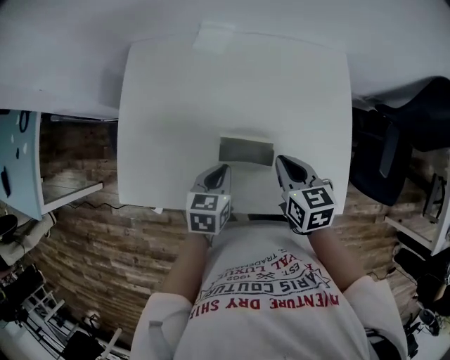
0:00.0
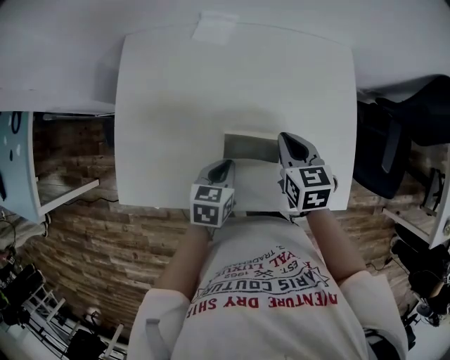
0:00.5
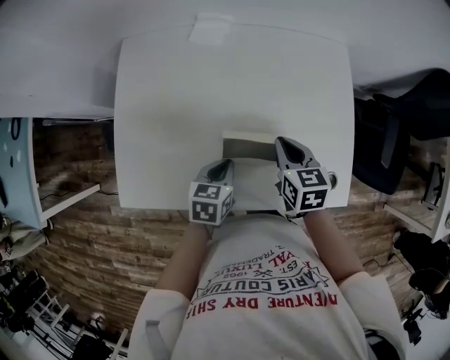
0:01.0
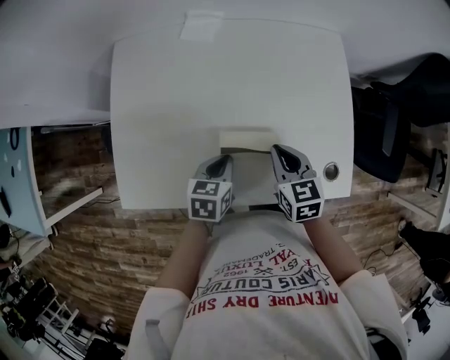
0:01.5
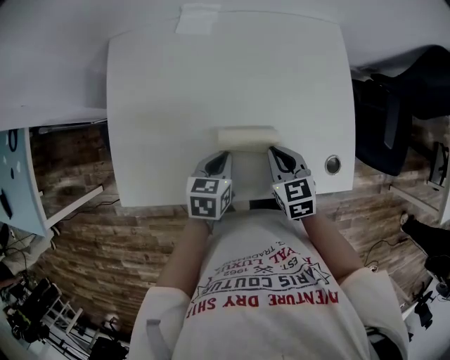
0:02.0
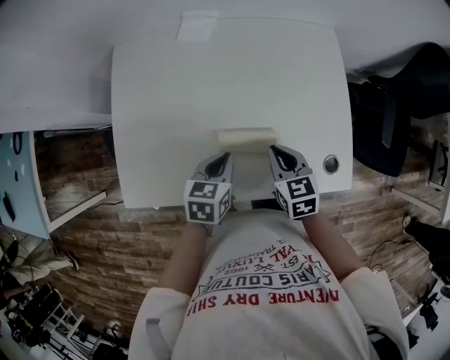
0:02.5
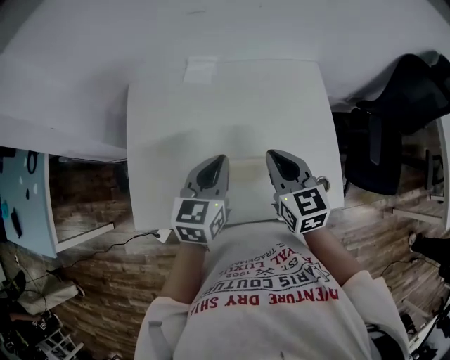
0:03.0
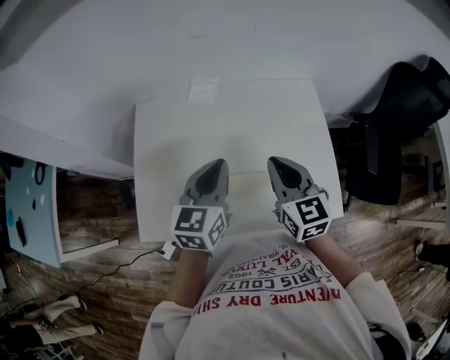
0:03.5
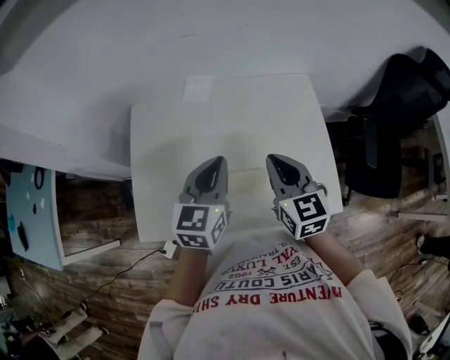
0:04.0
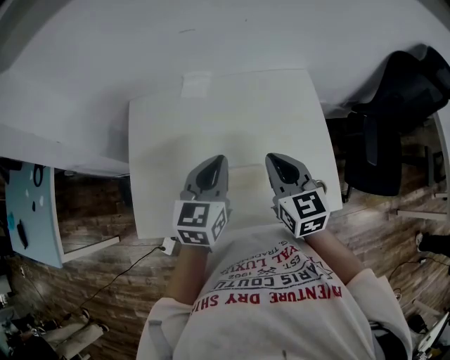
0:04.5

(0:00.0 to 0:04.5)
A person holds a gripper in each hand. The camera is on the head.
0:00.0 - 0:02.0: The right gripper goes some 5 cm downward.
0:02.0 - 0:04.5: Both grippers travel together upward, roughly 20 cm. The left gripper swivels about 30 degrees, while the right gripper changes its angle by approximately 20 degrees.

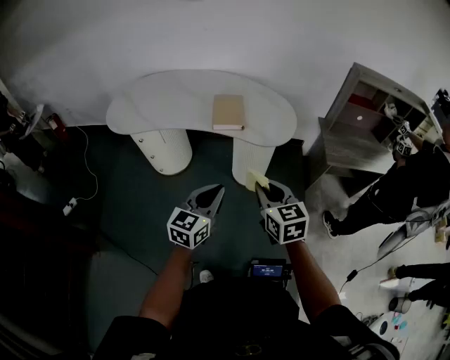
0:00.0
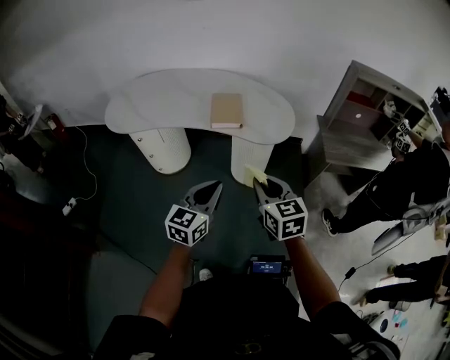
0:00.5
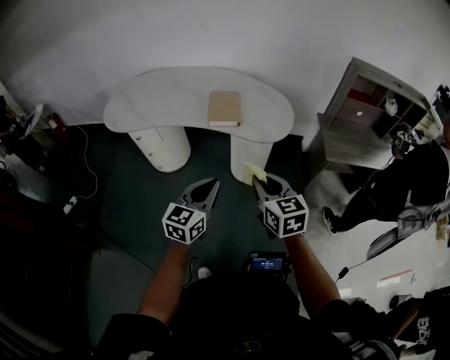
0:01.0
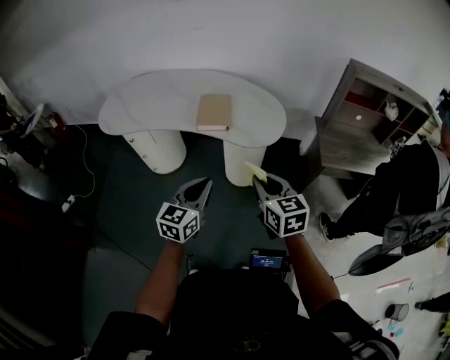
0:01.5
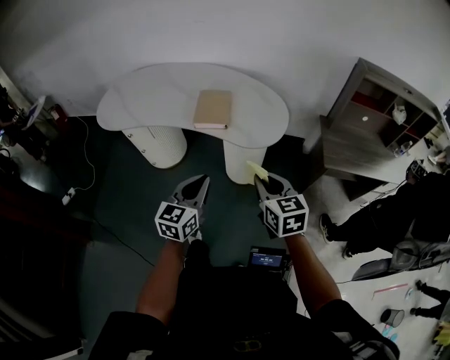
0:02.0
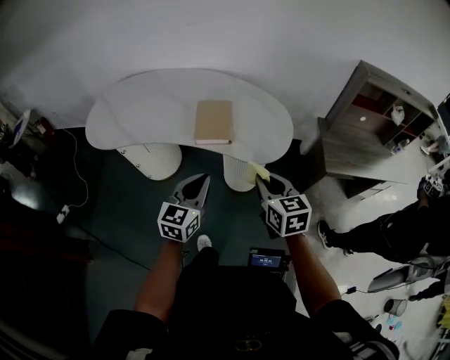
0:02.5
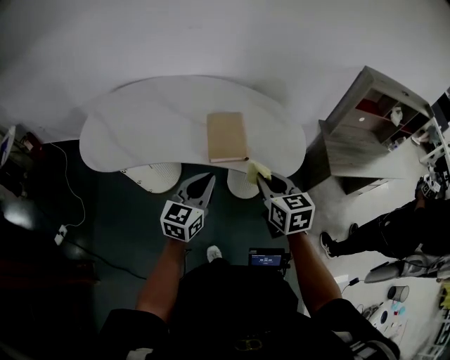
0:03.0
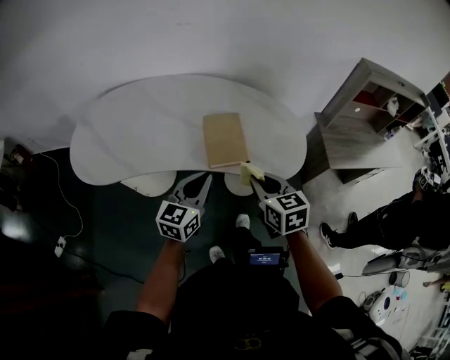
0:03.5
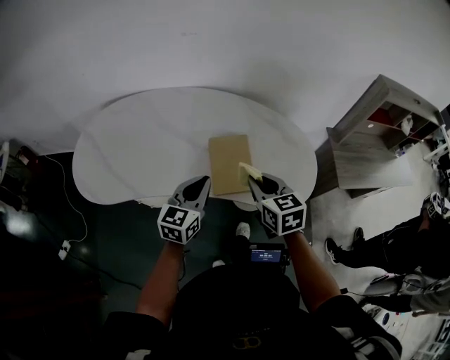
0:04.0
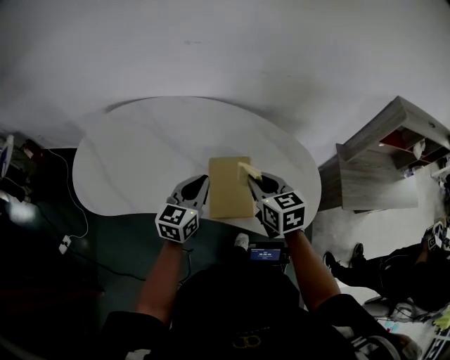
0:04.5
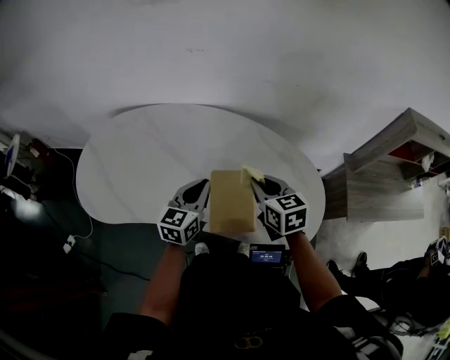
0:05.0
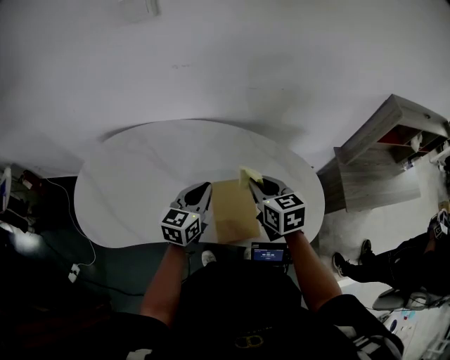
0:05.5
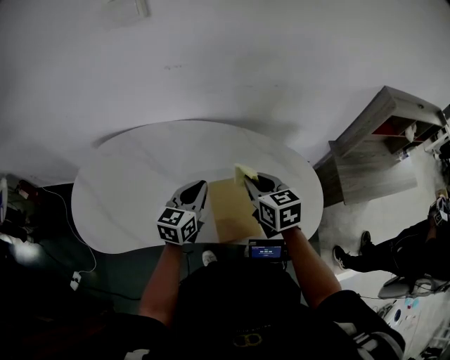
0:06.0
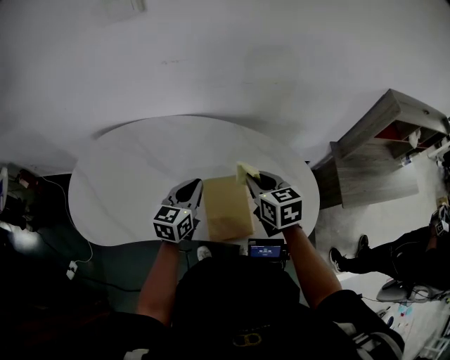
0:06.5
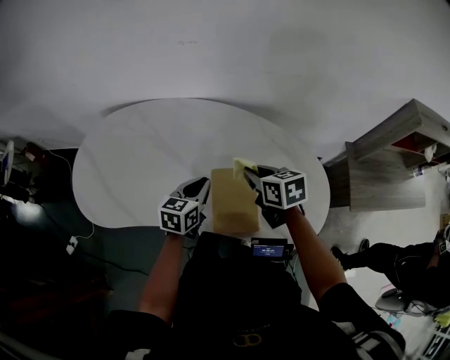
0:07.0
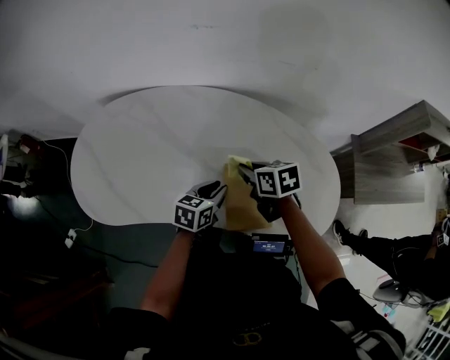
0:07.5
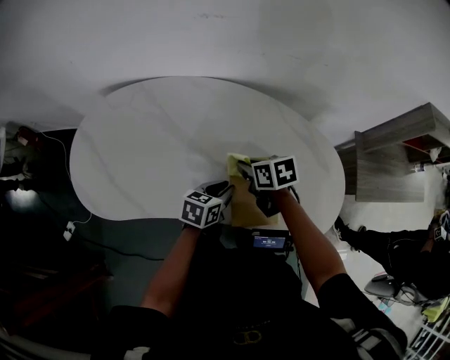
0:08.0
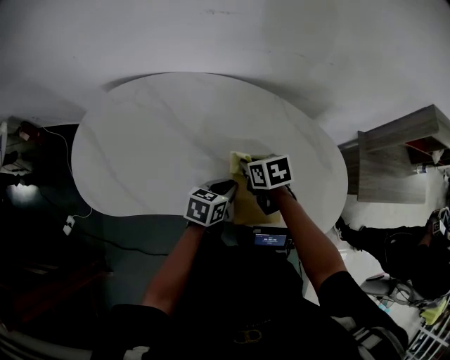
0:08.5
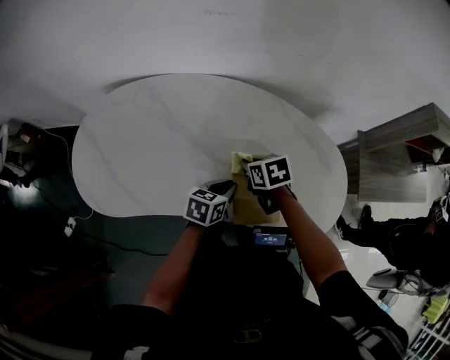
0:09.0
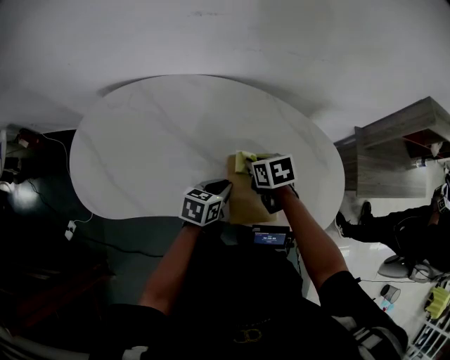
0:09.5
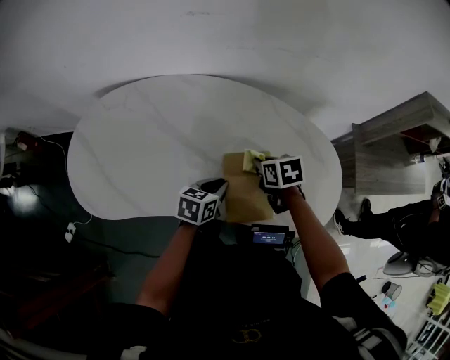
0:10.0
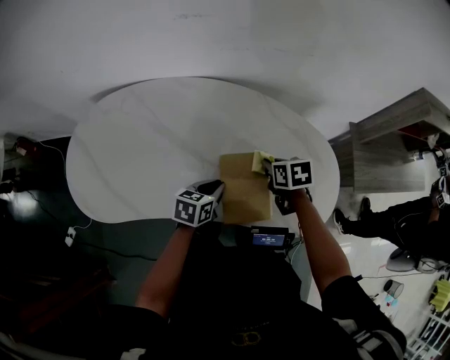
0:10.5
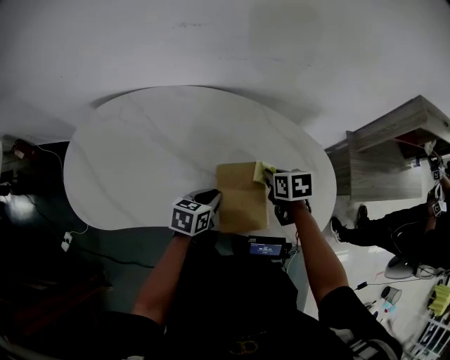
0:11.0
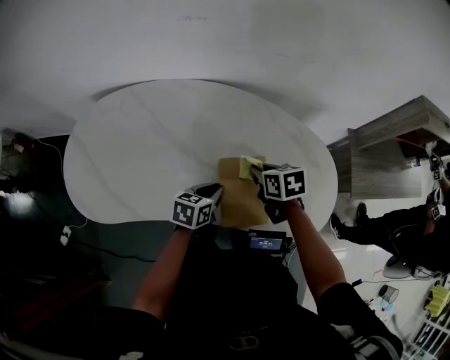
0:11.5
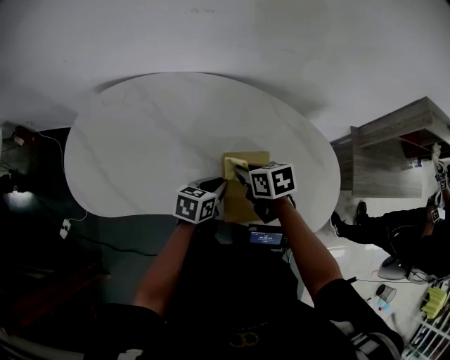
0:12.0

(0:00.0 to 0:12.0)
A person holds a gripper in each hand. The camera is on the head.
0:00.0 - 0:02.0: The right gripper travels to the right and forward by some 15 cm. The left gripper travels forward and to the right by some 10 cm.
0:02.0 - 0:04.0: The grippers both shift forward and to the left by about 35 cm.
0:04.0 - 0:06.0: The grippers both shift forward by about 15 cm.
0:06.0 - 0:08.0: The right gripper is displaced downward and to the left by about 15 cm, and rotates some 30 degrees. The left gripper heads downward, covering roughly 15 cm, and swivels roughly 30 degrees.
0:08.0 - 0:10.0: The right gripper is displaced to the right by some 10 cm.
0:10.0 - 0:12.0: The right gripper moves to the left, some 5 cm.

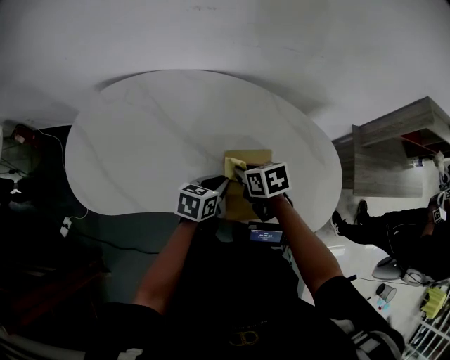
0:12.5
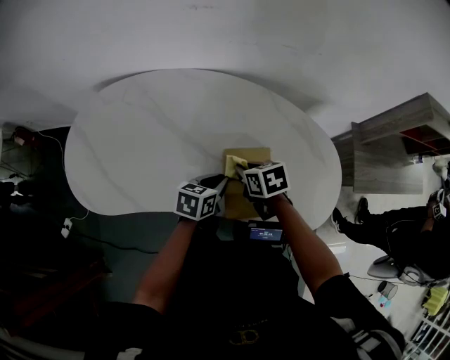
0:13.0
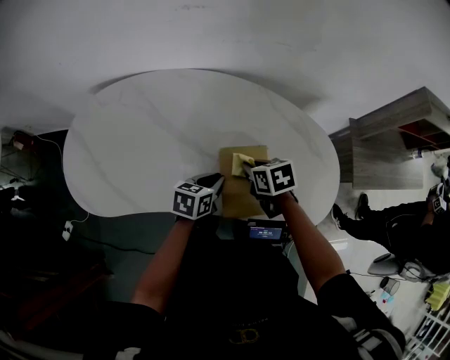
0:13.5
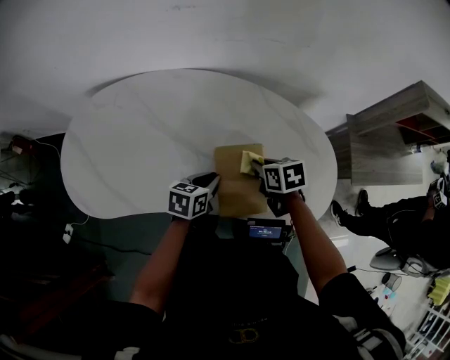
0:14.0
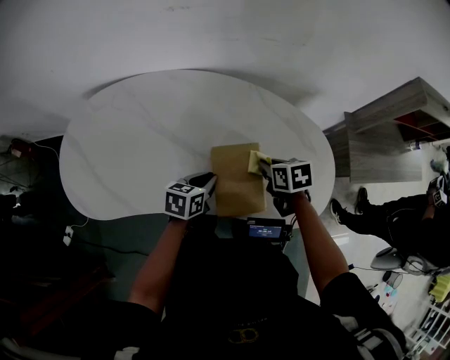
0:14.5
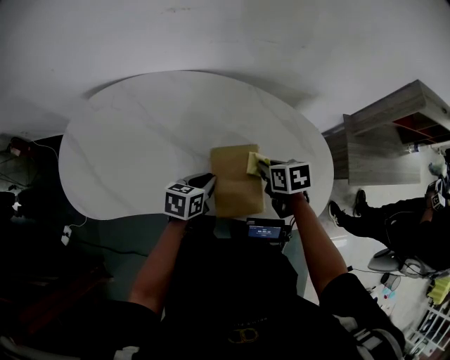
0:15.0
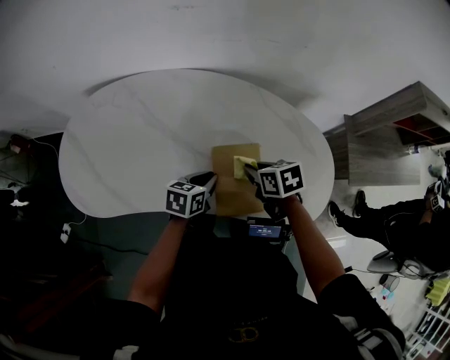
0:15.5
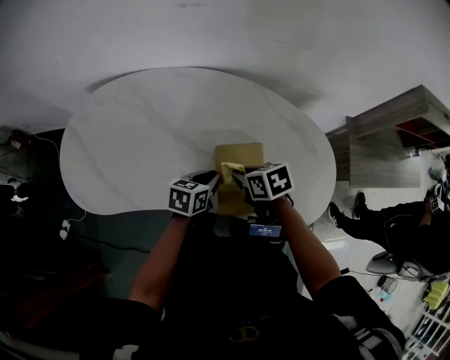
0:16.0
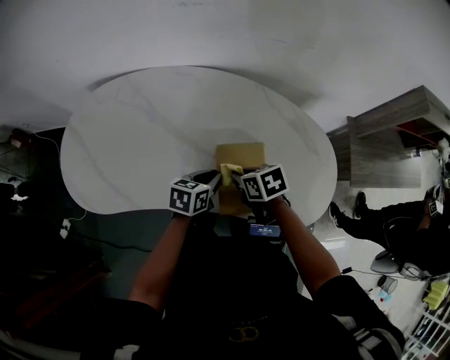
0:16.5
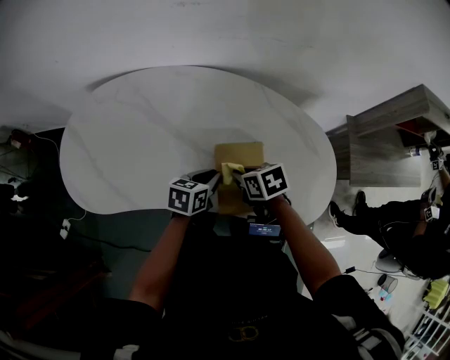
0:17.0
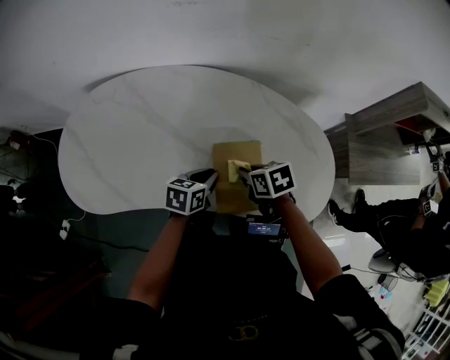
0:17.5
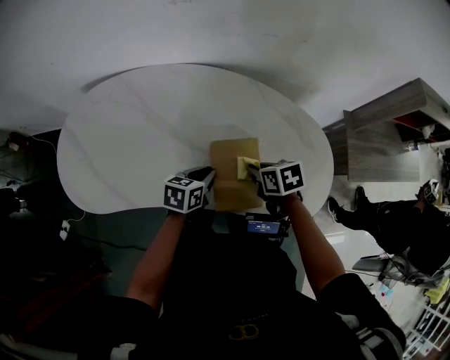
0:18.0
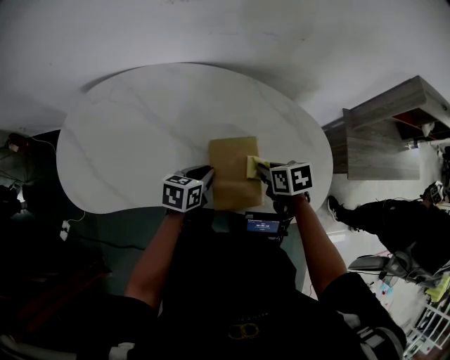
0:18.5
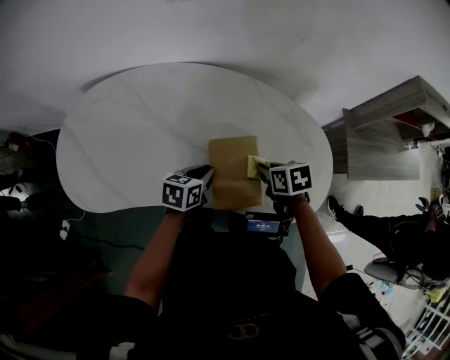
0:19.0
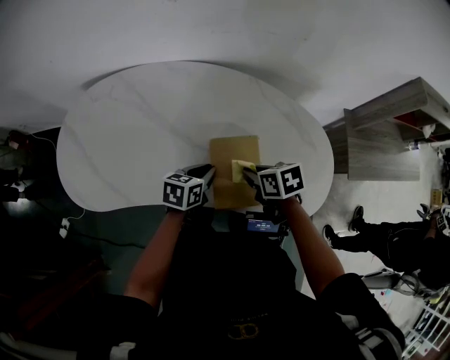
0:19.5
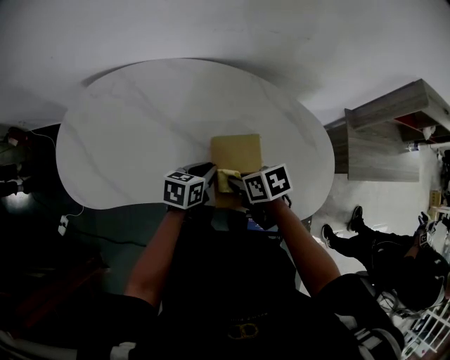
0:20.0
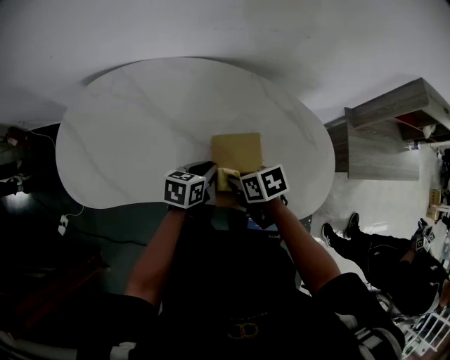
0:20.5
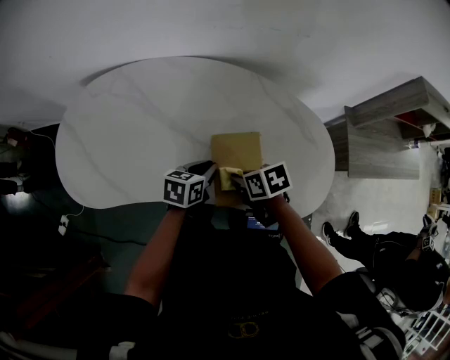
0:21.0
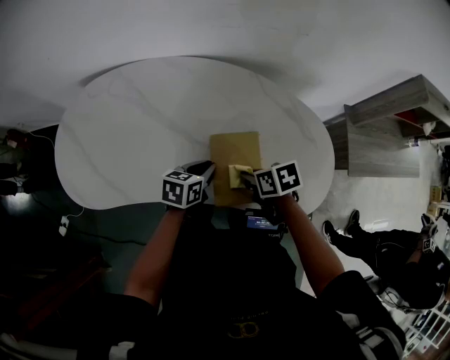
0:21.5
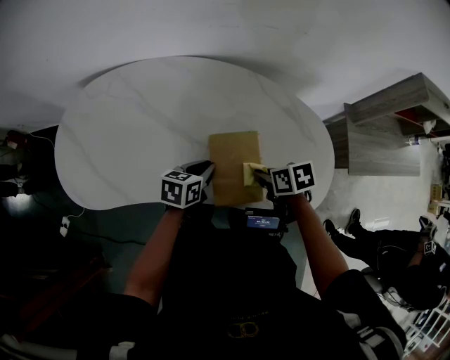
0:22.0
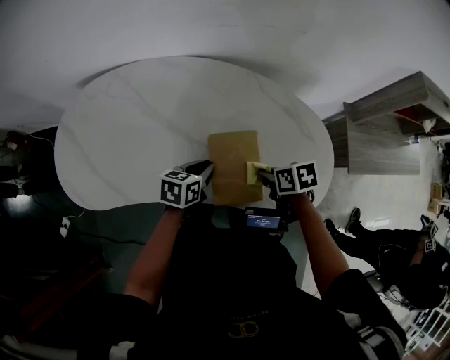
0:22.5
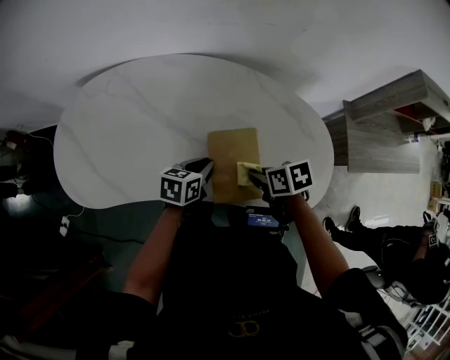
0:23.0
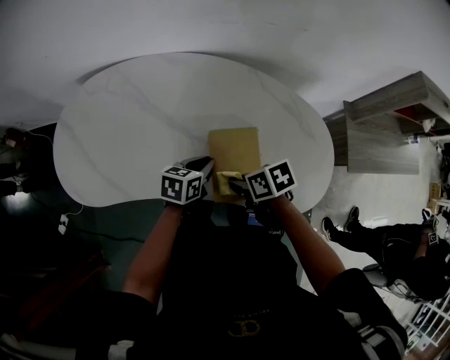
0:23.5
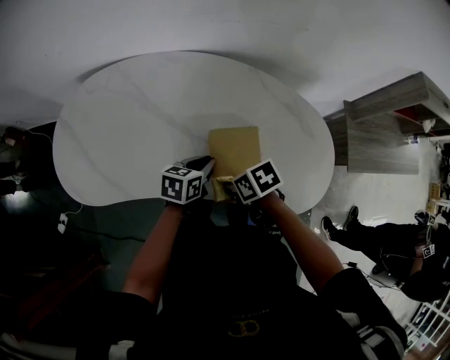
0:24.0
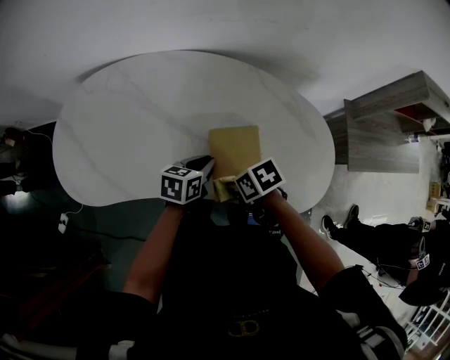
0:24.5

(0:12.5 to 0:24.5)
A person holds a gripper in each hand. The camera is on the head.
0:12.5 - 0:14.5: The right gripper goes some 10 cm to the right.
0:14.5 - 0:16.5: The right gripper moves to the left, some 10 cm.
0:16.5 - 0:18.5: The right gripper shifts roughly 10 cm to the right.
0:18.5 - 0:20.5: The right gripper travels to the left by some 10 cm.
0:20.5 - 0:22.5: The right gripper travels to the right by roughly 10 cm.
0:22.5 - 0:24.5: The right gripper shifts by roughly 10 cm.
